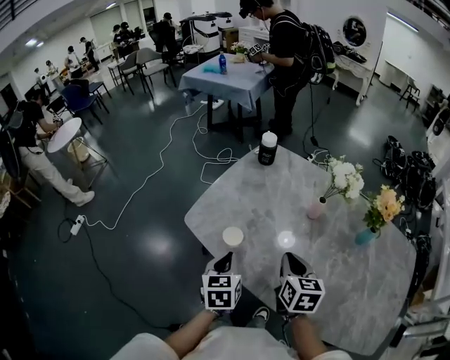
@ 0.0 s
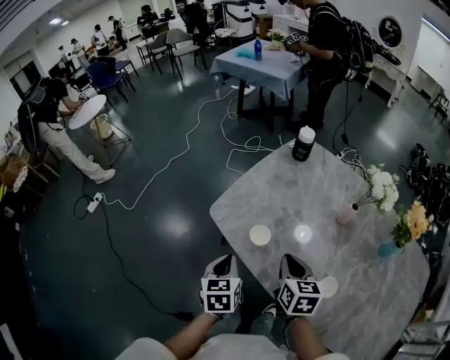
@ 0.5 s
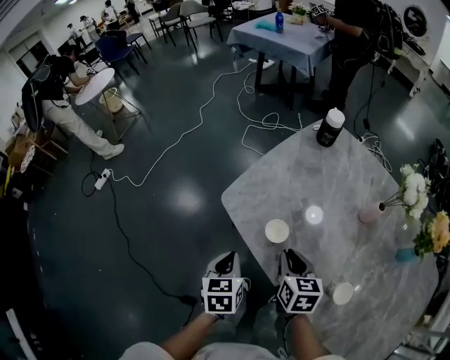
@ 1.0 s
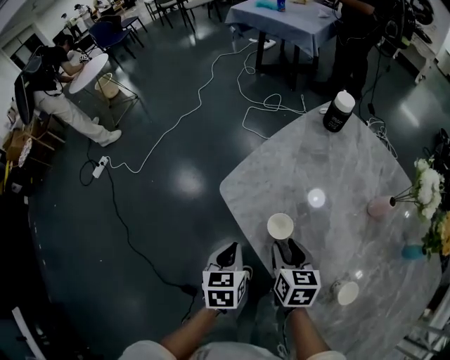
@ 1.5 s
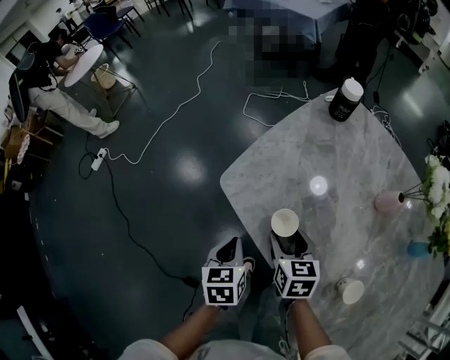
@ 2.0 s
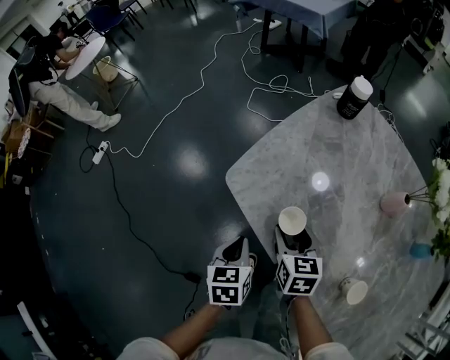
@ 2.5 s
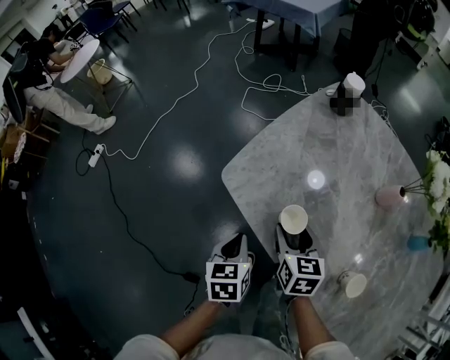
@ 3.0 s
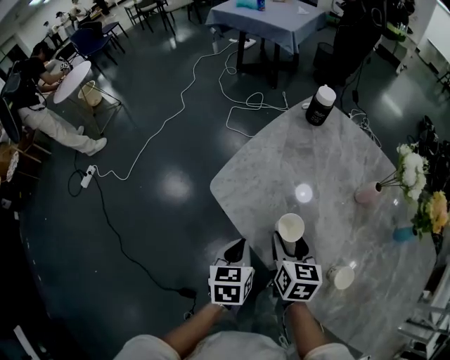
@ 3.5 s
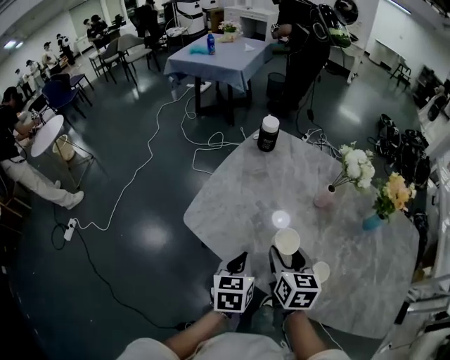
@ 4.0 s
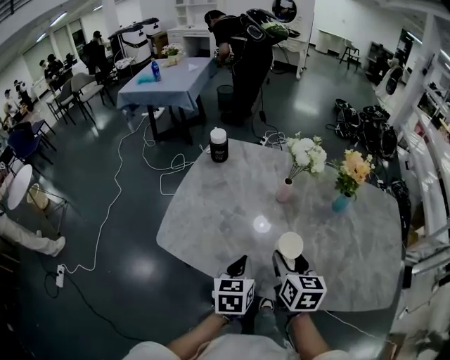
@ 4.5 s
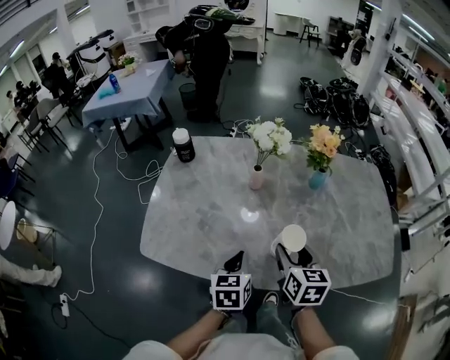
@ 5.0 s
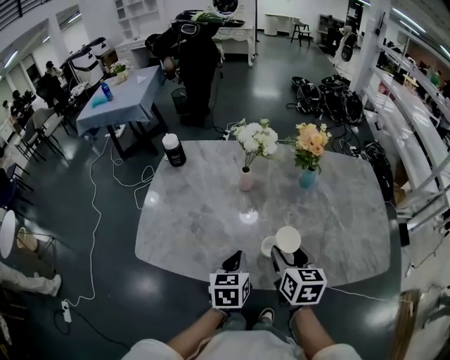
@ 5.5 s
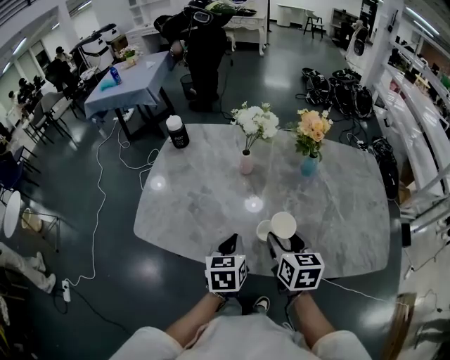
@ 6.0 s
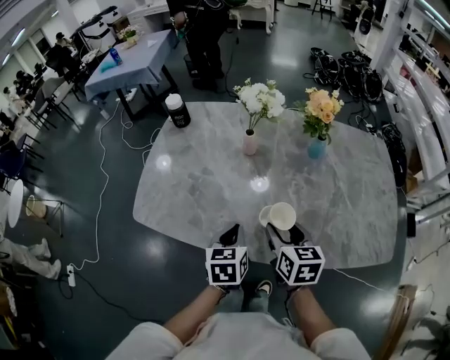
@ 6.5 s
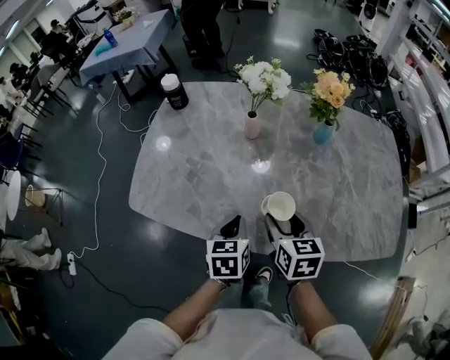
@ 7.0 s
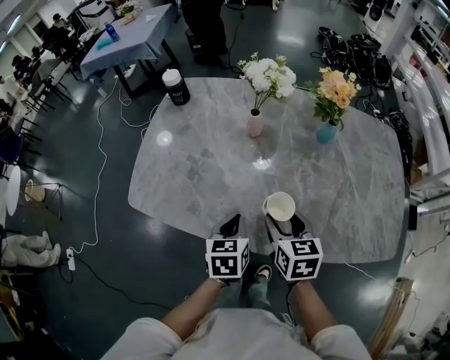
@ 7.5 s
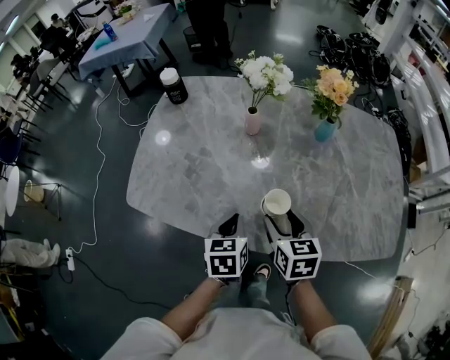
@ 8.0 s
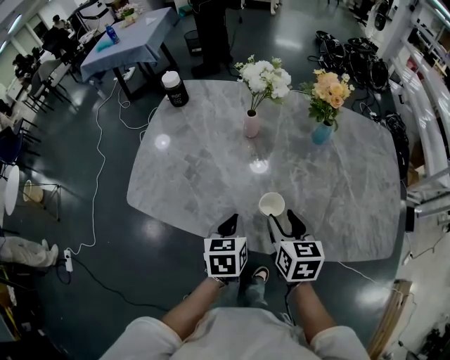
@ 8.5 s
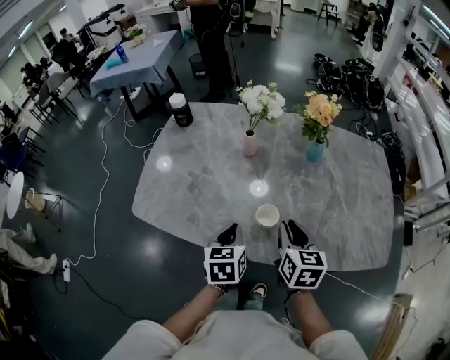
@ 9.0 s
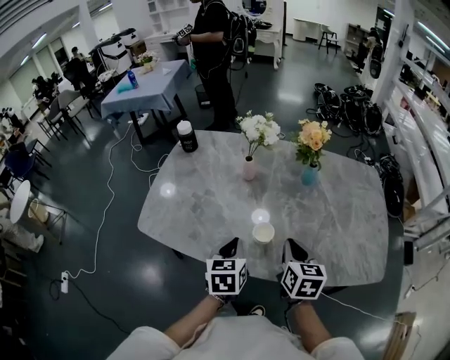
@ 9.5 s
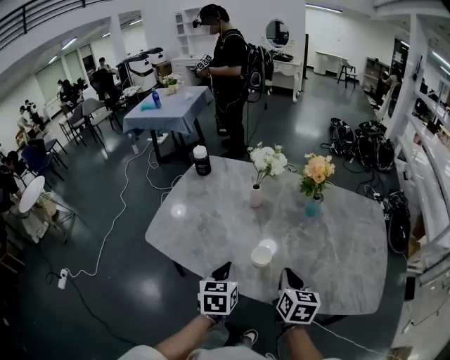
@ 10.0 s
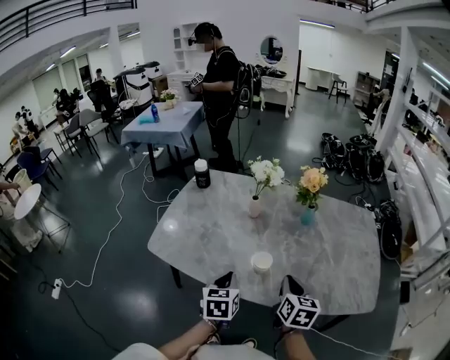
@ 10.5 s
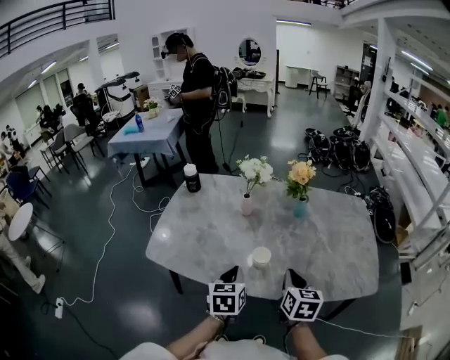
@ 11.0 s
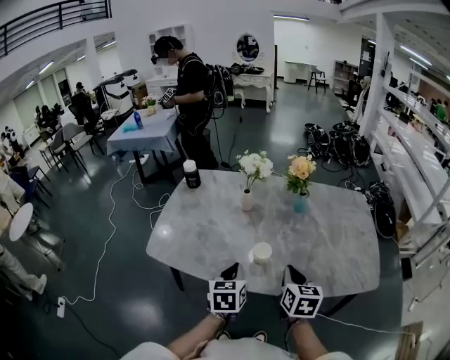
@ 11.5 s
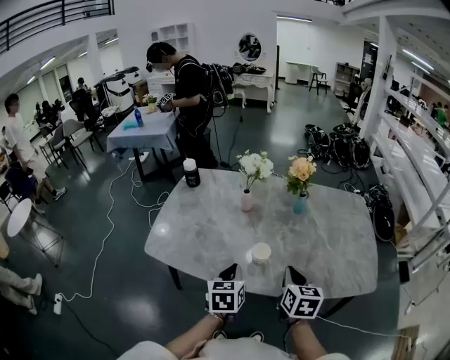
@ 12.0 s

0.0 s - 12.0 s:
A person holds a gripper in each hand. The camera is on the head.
0.0 s - 2.0 s: The left gripper is displaced downward and to the left by roughly 15 cm; the right gripper travels downward, to the left and forward by about 25 cm, rotates some 20 degrees, and opens up.
2.0 s - 4.0 s: The left gripper shifts roughly 15 cm to the right and upward, and changes its angle by some 30 degrees, while the right gripper travels upward and to the right by approximately 15 cm, and turns by about 20 degrees.
4.0 s - 6.0 s: Both grippers travel together to the right, approximately 20 cm. The left gripper rotates roughly 20 degrees.
6.0 s - 8.0 s: Both grippers move downward, roughly 5 cm.
8.0 s - 10.0 s: The right gripper shifts approximately 10 cm to the right and upward, and closes up. The left gripper shifts approximately 10 cm upward.
10.0 s - 12.0 s: The right gripper goes about 5 cm backward.

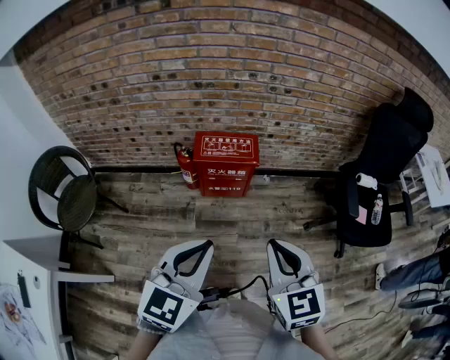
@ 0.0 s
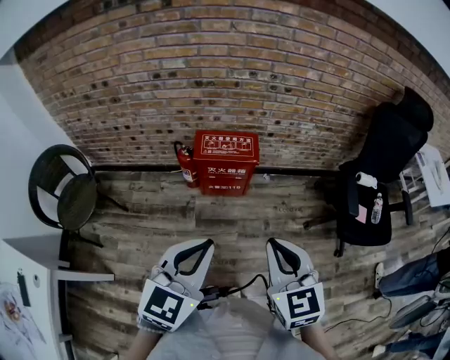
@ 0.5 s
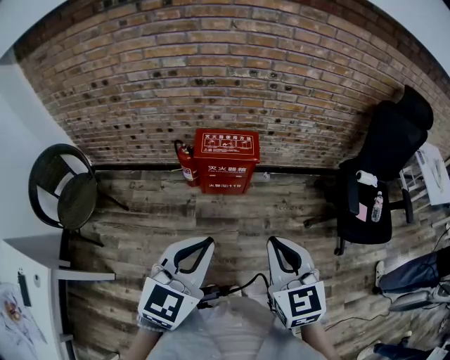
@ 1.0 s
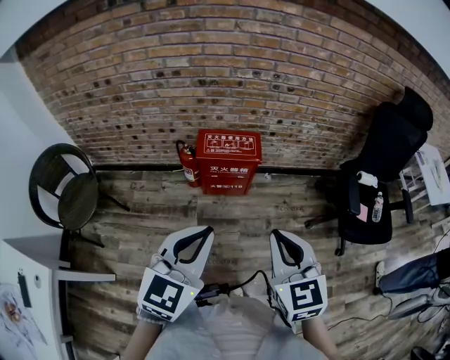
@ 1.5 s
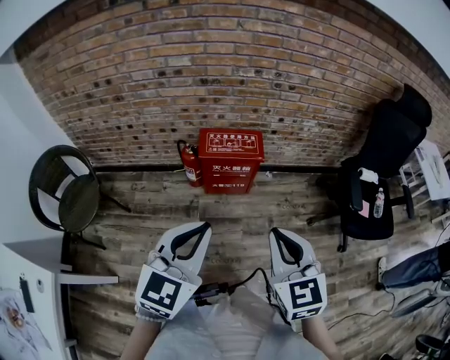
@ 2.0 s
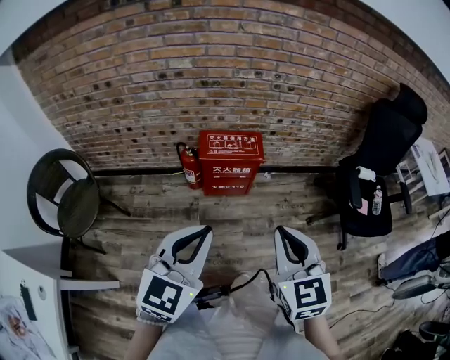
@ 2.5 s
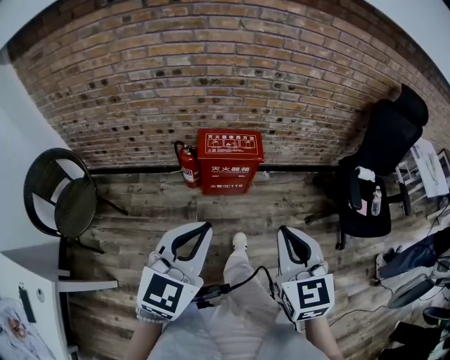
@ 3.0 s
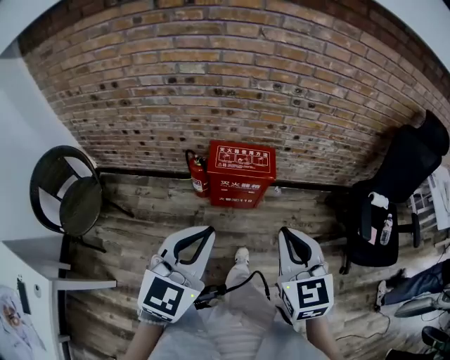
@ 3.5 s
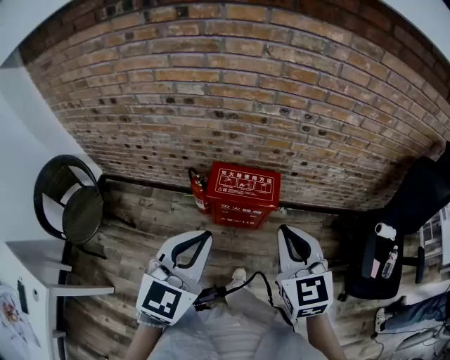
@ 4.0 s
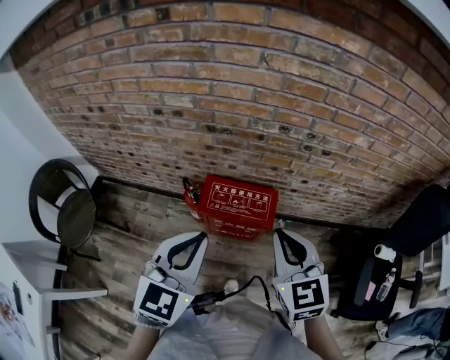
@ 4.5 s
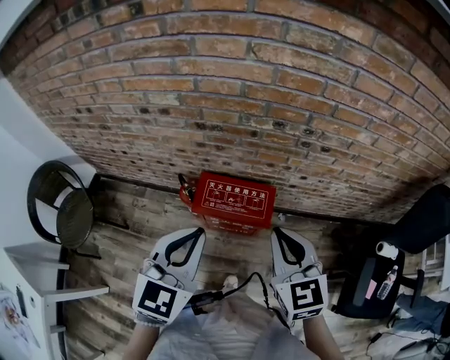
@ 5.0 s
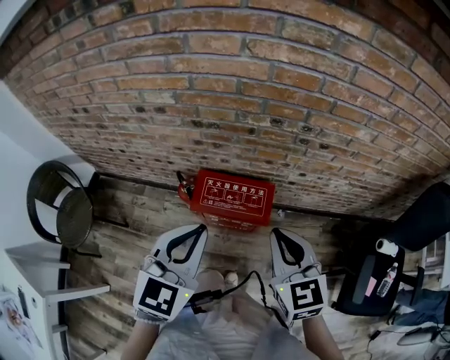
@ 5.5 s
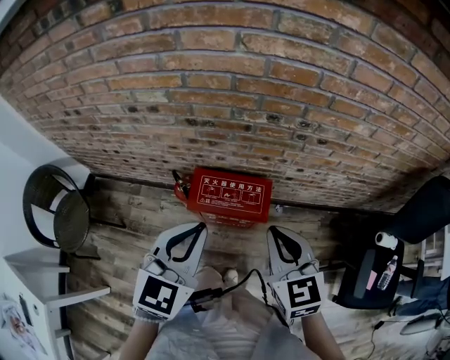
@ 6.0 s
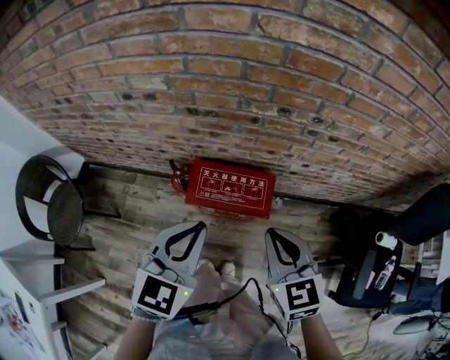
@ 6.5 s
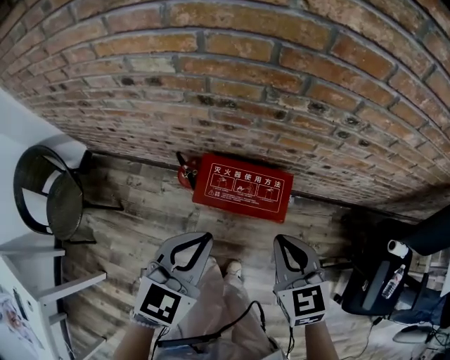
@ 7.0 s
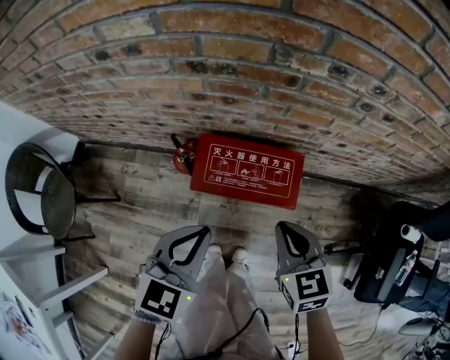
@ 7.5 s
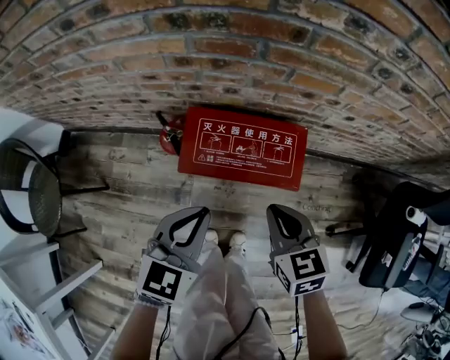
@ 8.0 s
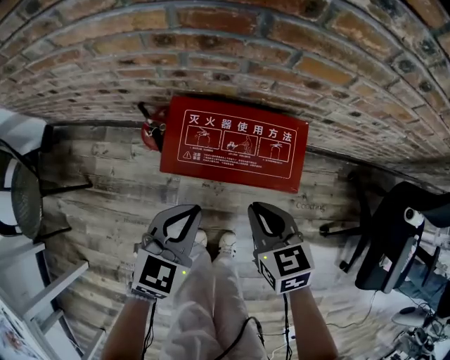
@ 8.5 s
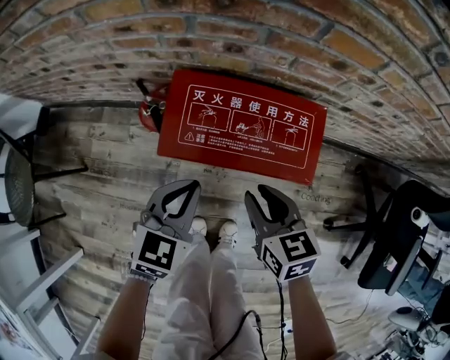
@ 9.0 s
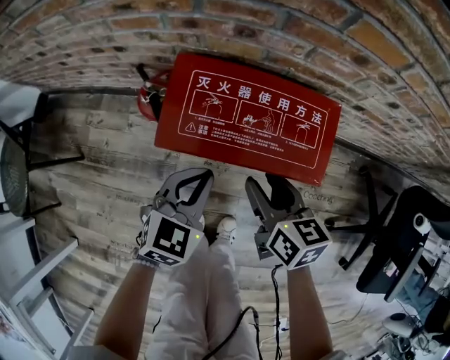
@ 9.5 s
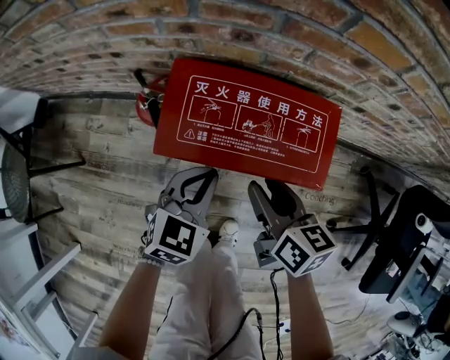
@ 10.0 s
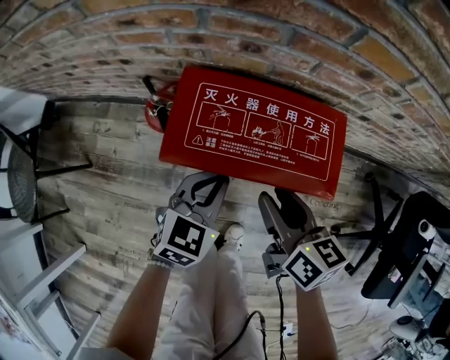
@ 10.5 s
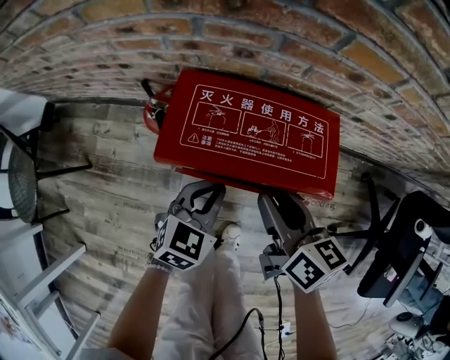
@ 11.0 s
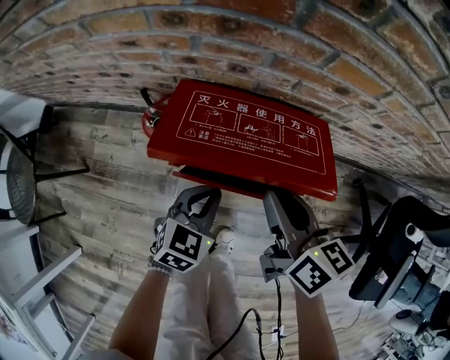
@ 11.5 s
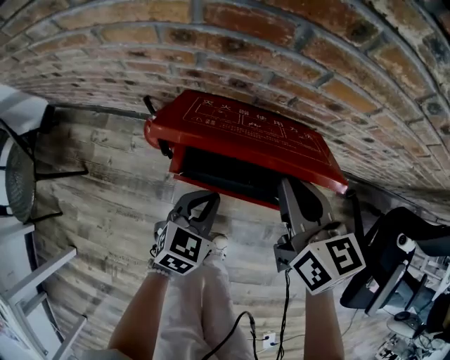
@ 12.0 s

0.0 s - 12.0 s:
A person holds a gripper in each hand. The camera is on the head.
0.0 s - 2.0 s: The left gripper ends up about 5 cm from where it was.
2.0 s - 4.0 s: The grippers both shift forward by about 25 cm.
4.0 s - 6.0 s: The two grippers go some 15 cm forward.
6.0 s - 8.0 s: Both grippers move downward, about 30 cm. The right gripper swivels approximately 20 degrees.
8.0 s - 10.0 s: The two grippers go about 15 cm downward. The right gripper rotates roughly 30 degrees, and opens its fingers.
10.0 s - 12.0 s: The right gripper travels upward and forward by some 15 cm, and closes up.

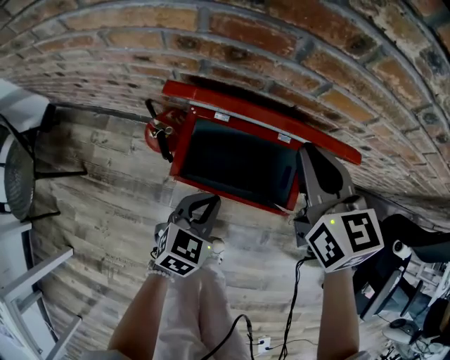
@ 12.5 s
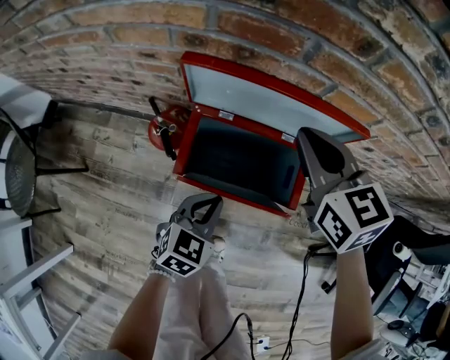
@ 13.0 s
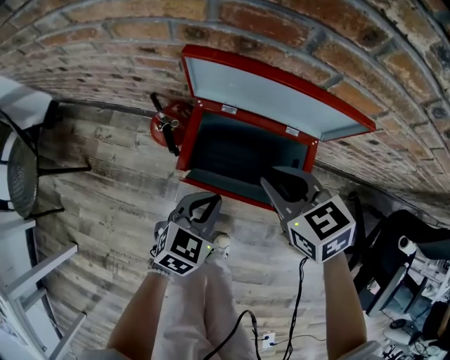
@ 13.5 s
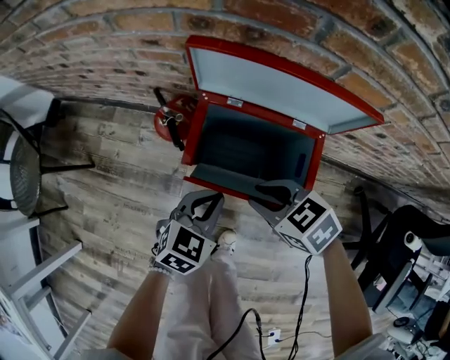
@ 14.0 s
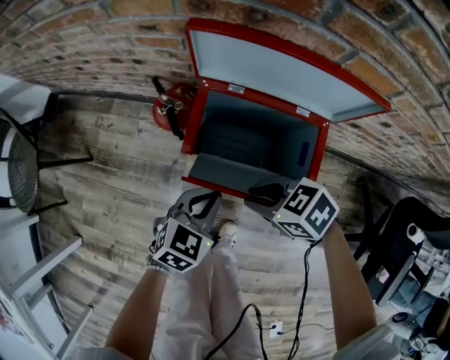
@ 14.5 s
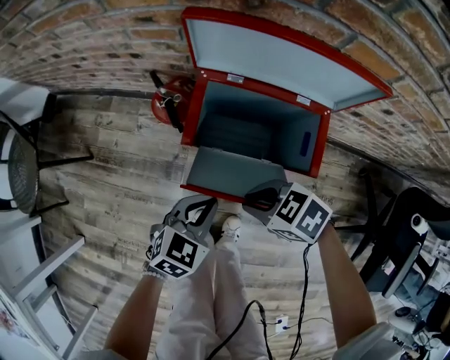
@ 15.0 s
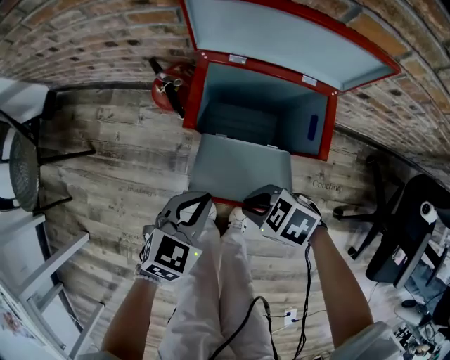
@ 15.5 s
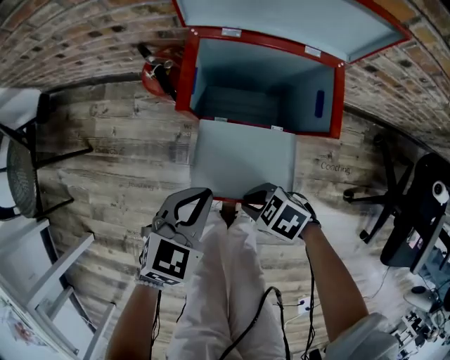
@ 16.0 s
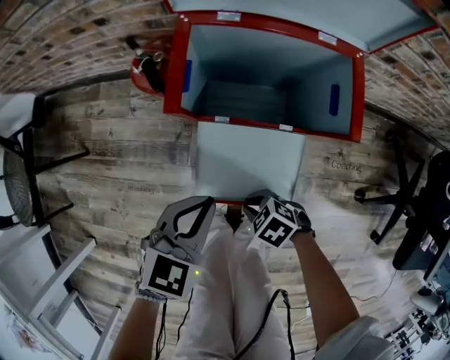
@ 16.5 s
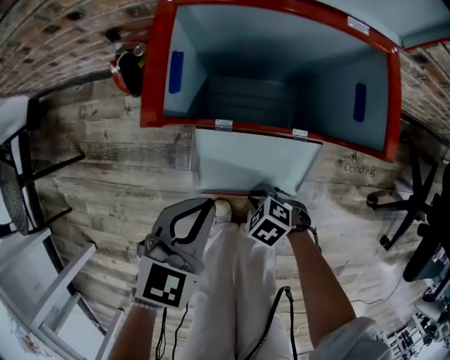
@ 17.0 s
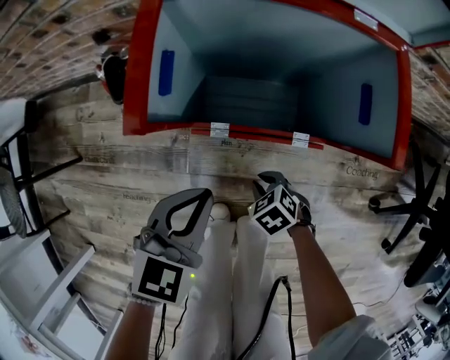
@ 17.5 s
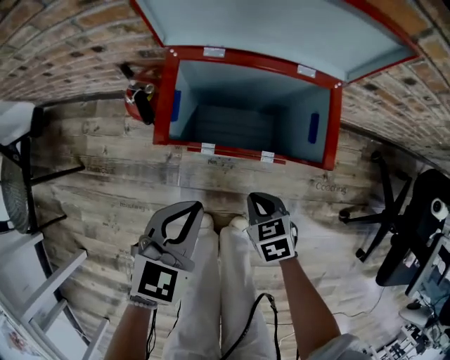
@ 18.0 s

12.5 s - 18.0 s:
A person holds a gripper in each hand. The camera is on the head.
12.5 s - 14.5 s: The right gripper shifts some 20 cm downward, rotates some 60 degrees, and opens. Meanwhile the left gripper changes place by approximately 5 cm.
14.5 s - 16.0 s: The right gripper moves about 20 cm; the left gripper changes place by about 10 cm.
16.0 s - 18.0 s: The left gripper travels downward and back again, approximately 10 cm each way. Meanwhile the right gripper moves some 20 cm downward and comes back, and turns by approximately 40 degrees.
